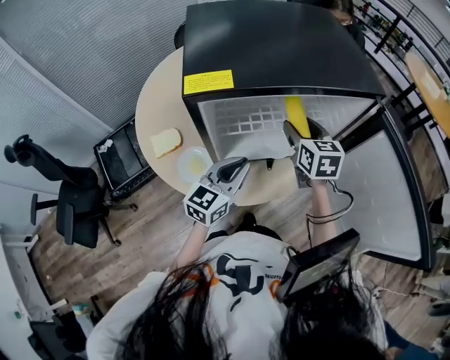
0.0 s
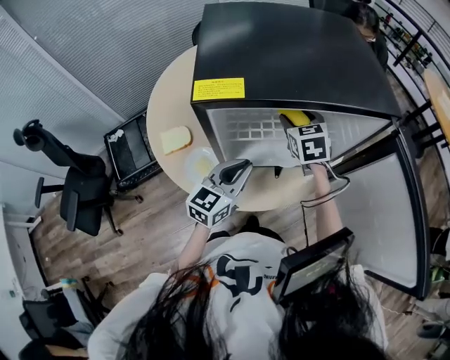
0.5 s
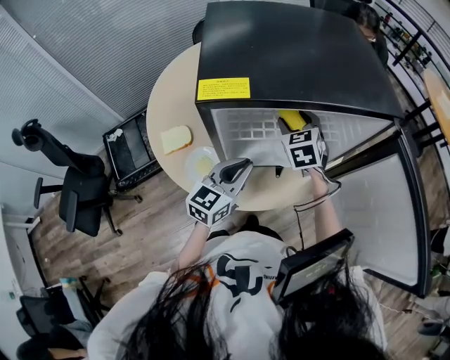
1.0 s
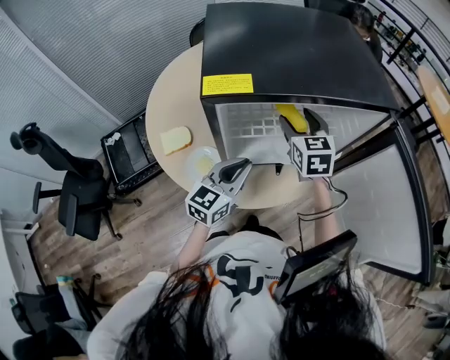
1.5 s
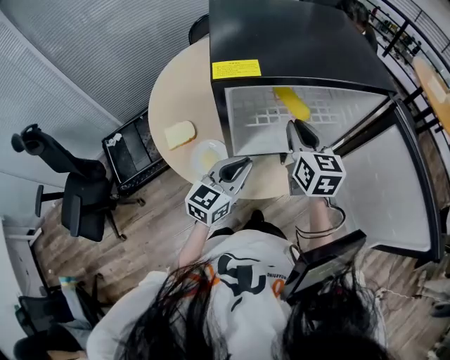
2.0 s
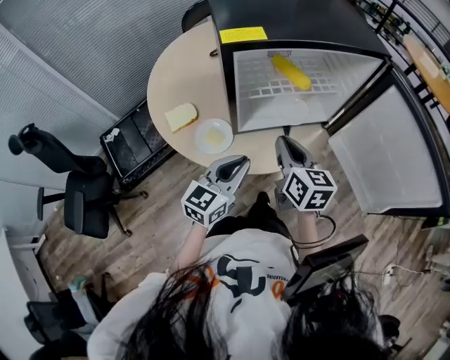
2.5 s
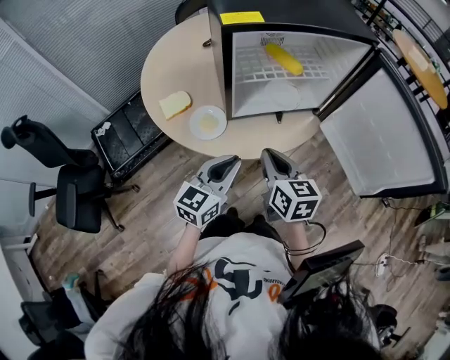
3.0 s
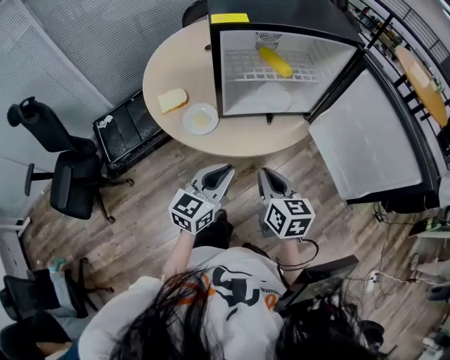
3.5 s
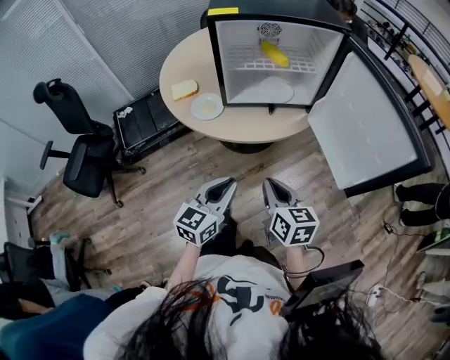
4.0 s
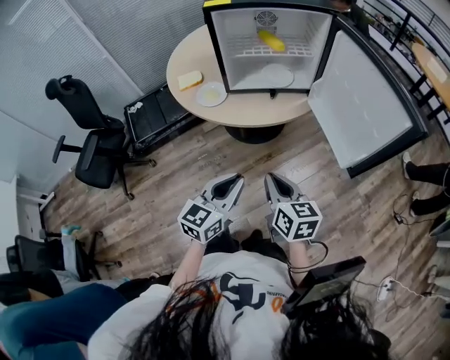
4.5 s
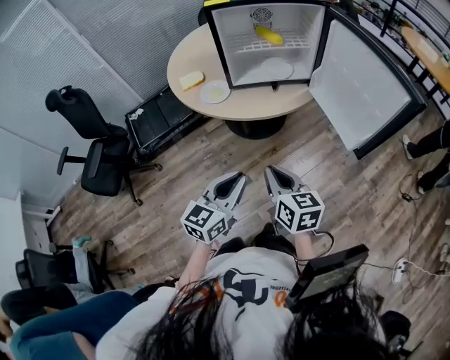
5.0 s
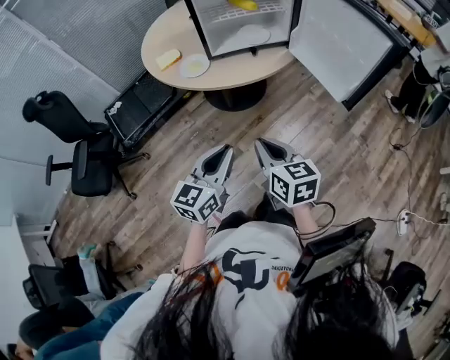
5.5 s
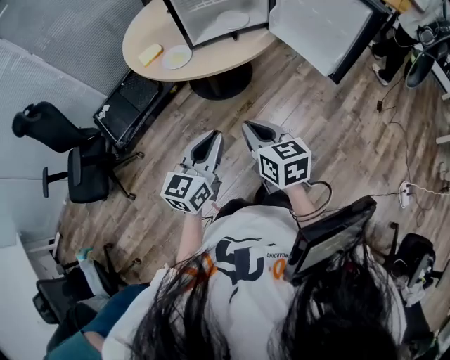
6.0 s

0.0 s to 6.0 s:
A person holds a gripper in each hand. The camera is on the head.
0.0 to 2.0 s: The left gripper changes place by approximately 5 cm. The right gripper goes about 10 cm backward and to the left, and closes its fingers.
2.0 to 4.0 s: Both grippers travel together backward, some 35 cm.
4.0 to 6.0 s: Both grippers travel together backward, about 15 cm.

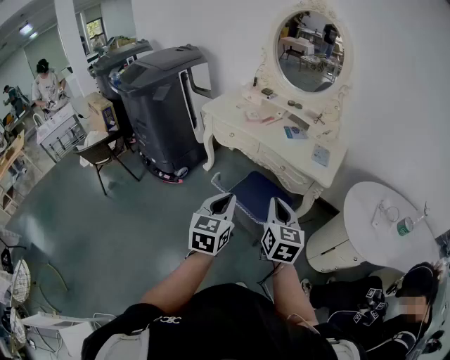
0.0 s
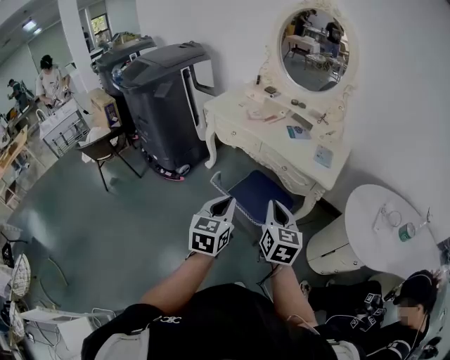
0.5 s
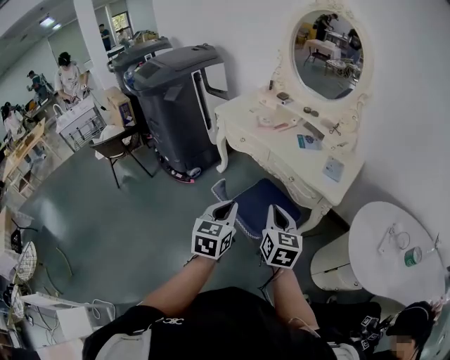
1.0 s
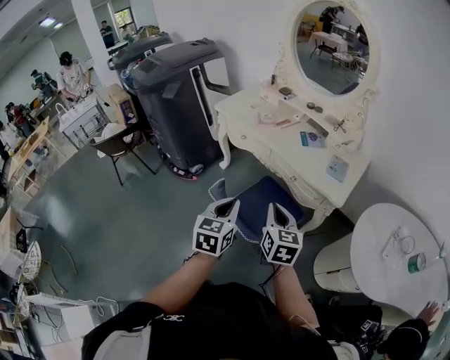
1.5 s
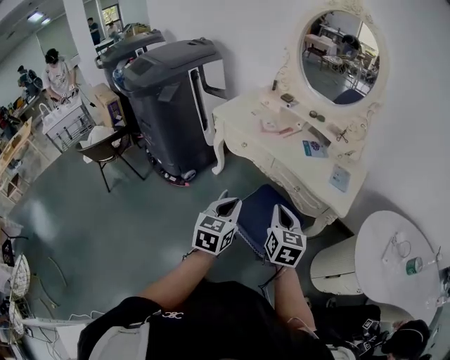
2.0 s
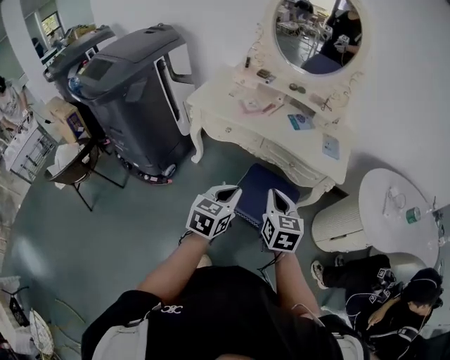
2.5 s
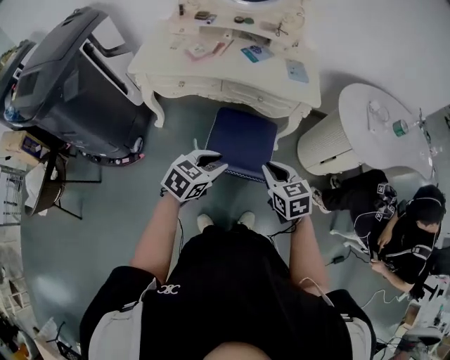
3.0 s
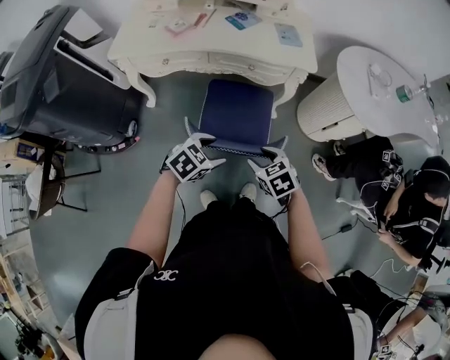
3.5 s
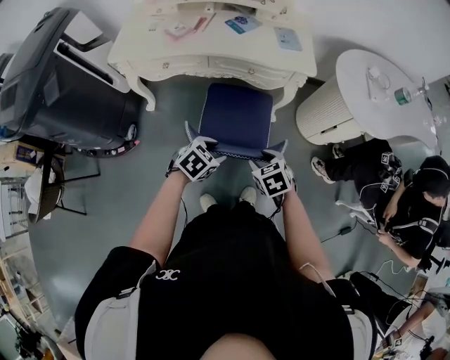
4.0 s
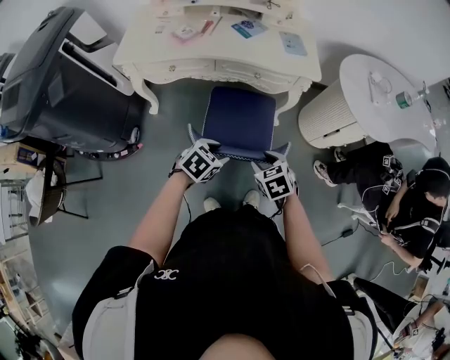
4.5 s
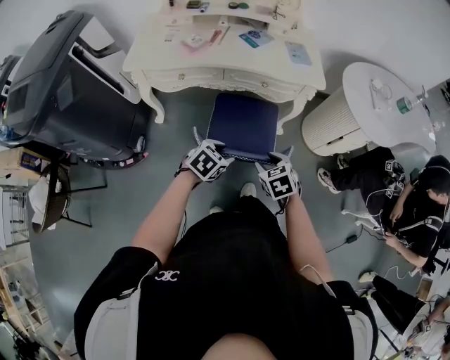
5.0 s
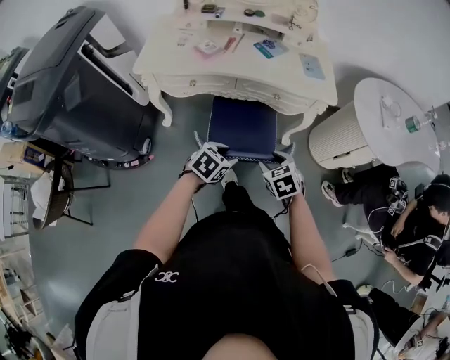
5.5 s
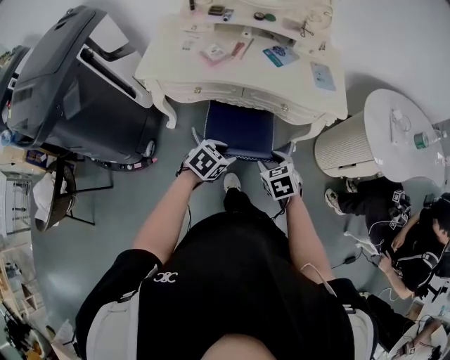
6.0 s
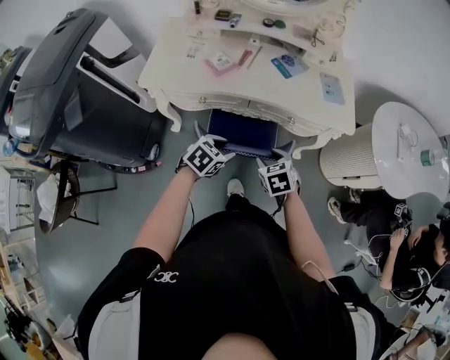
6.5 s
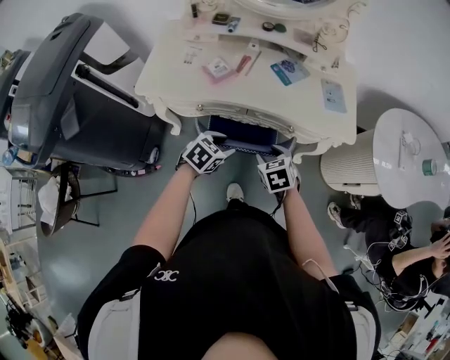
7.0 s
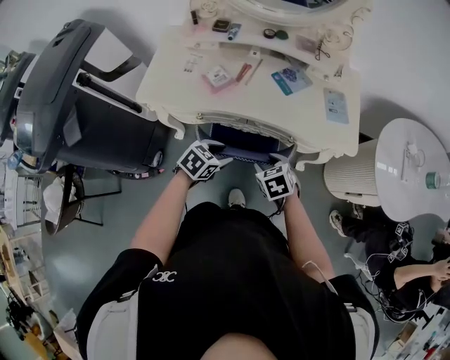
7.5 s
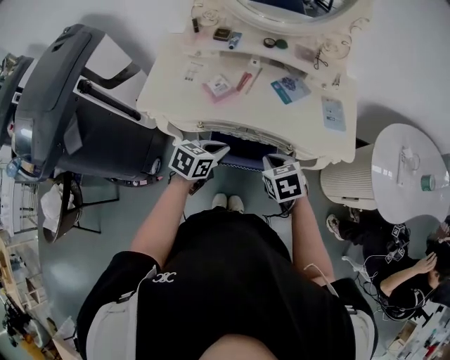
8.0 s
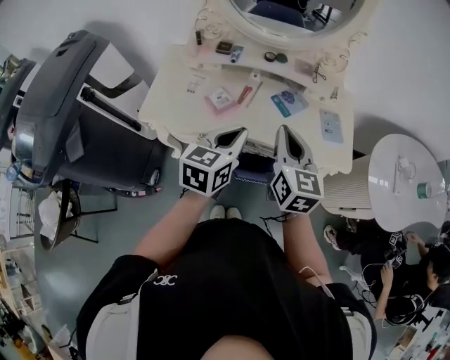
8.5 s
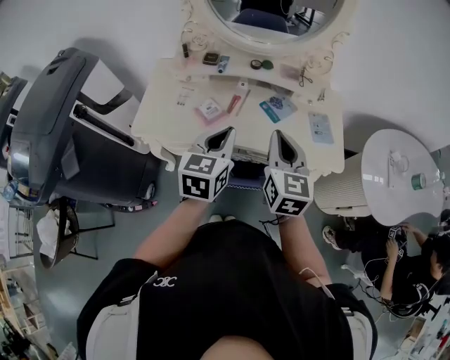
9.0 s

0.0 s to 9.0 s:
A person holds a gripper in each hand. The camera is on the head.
0.0 to 2.0 s: Both grippers move forward, approximately 15 cm.
2.0 to 4.5 s: Both grippers travel together downward, some 20 cm. The right gripper tilts its fingers approximately 40 degrees downward, and opens its fingers, while the left gripper angles its fingers downward, by approximately 30 degrees, and opens up.
4.5 to 7.0 s: Both grippers travel together forward and to the left, approximately 25 cm.
7.0 to 9.0 s: The left gripper travels upward and forward by some 25 cm, tips its fingers upward by approximately 30 degrees, and closes up, while the right gripper shifts about 25 cm upward, tilts its fingers about 40 degrees upward, and closes up.

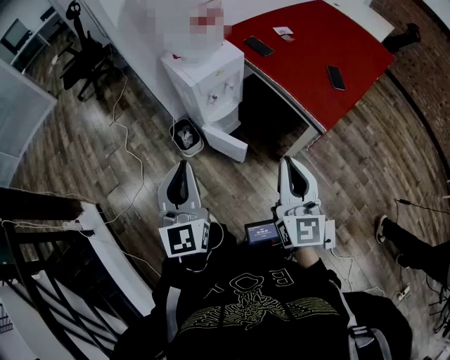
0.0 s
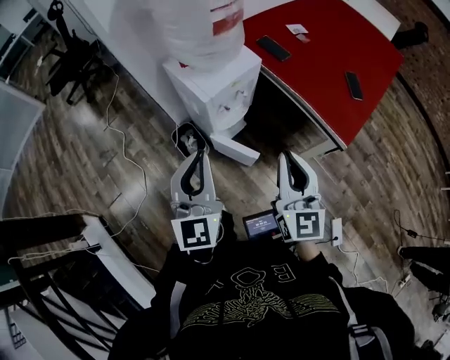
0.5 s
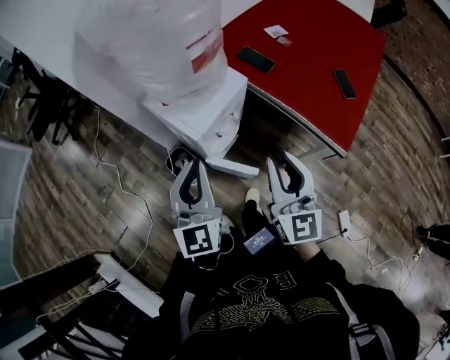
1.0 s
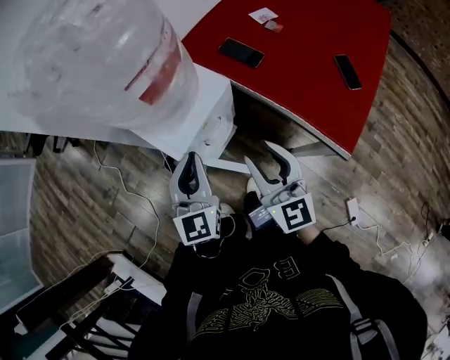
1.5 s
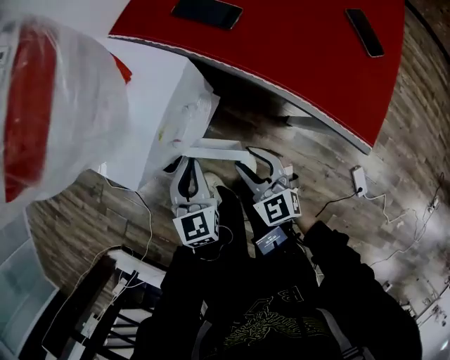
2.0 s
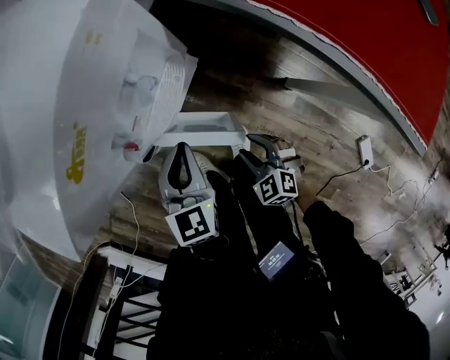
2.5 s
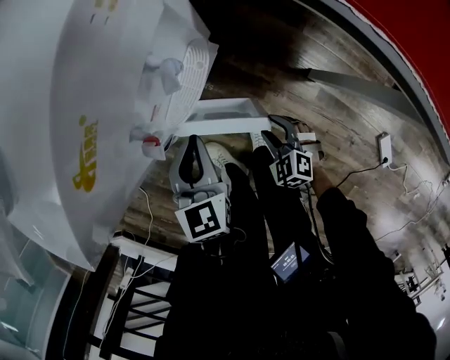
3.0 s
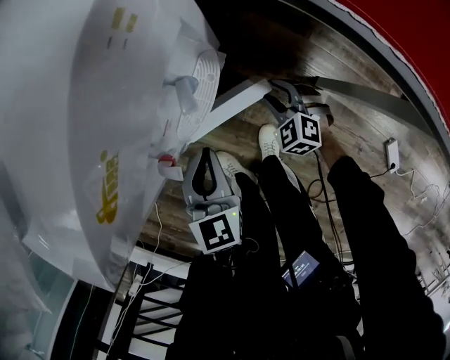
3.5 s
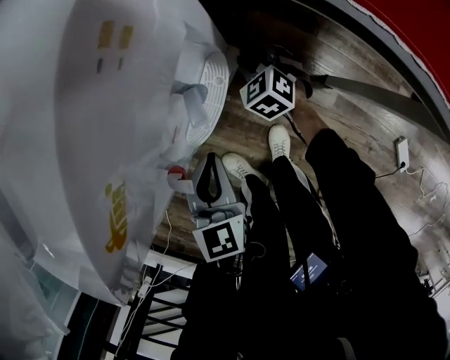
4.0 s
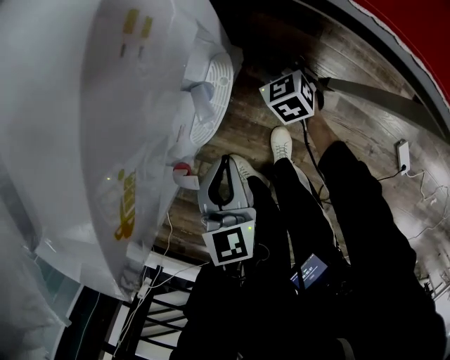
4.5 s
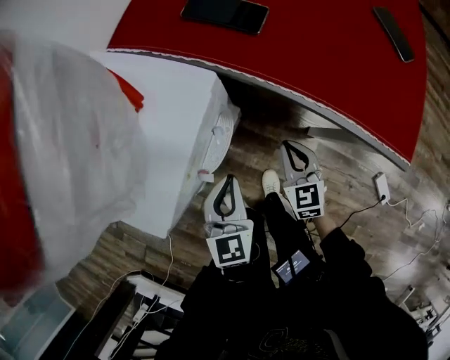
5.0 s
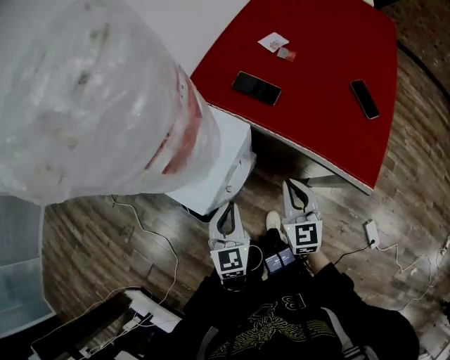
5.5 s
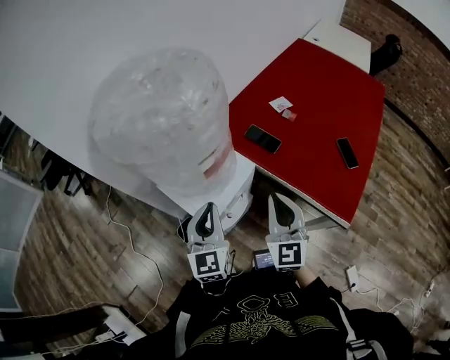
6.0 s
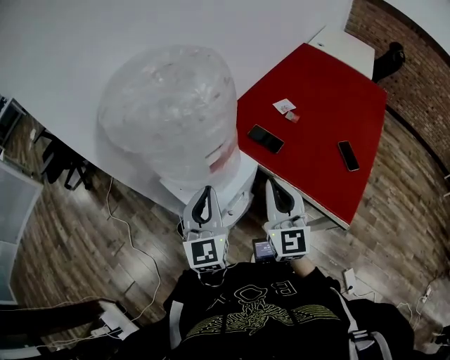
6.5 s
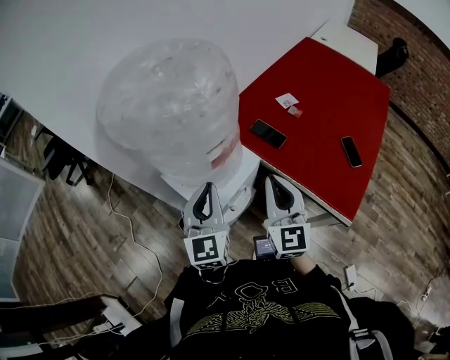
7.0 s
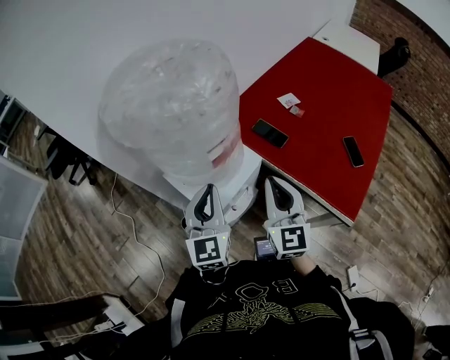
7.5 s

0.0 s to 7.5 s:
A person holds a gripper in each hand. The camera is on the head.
0.0 to 2.0 s: The right gripper heads downward and forward, covering some 50 cm, rotates approximately 30 degrees, and opens up; the left gripper is displaced forward and downward by some 50 cm, and points its fingers about 30 degrees further downward.
2.0 to 4.0 s: The right gripper travels downward and forward by roughly 35 cm, and changes its angle by roughly 30 degrees, while the left gripper shifts some 20 cm downward.
4.0 to 5.5 s: The right gripper moves upward, some 40 cm, turns by approximately 40 degrees, and closes its fingers; the left gripper shifts some 30 cm upward.
5.5 to 7.5 s: The two grippers go about 20 cm upward. The left gripper rotates about 20 degrees.

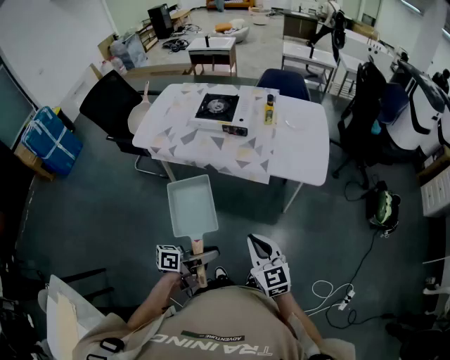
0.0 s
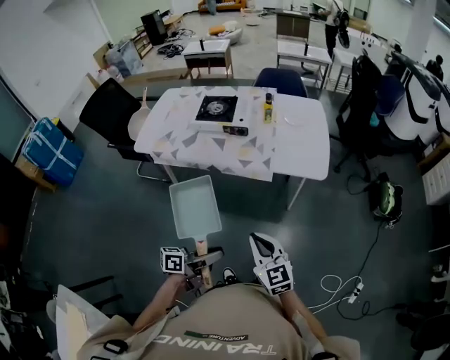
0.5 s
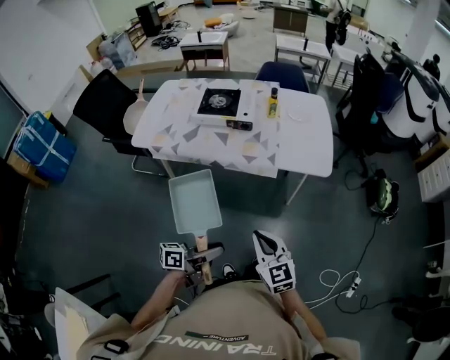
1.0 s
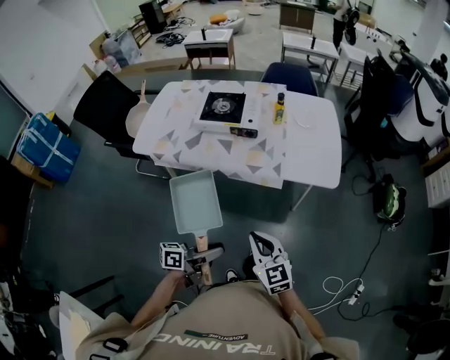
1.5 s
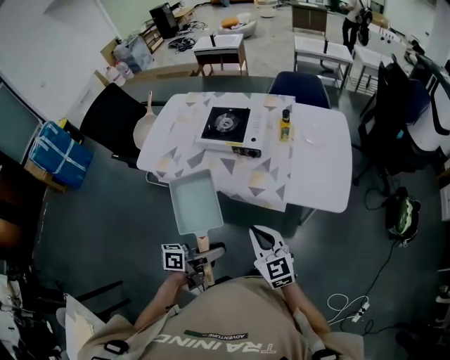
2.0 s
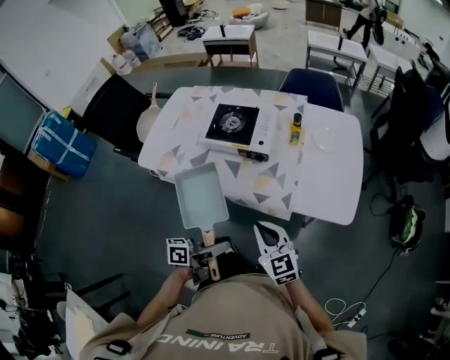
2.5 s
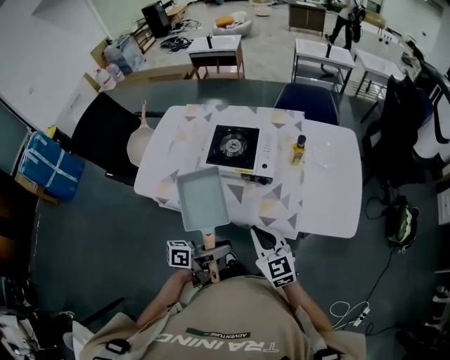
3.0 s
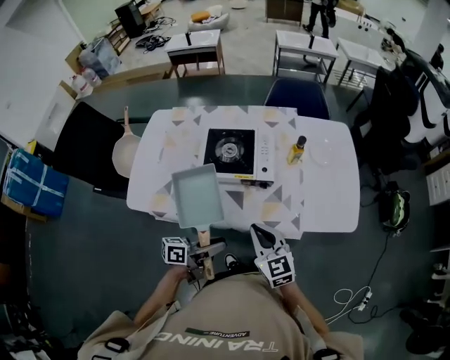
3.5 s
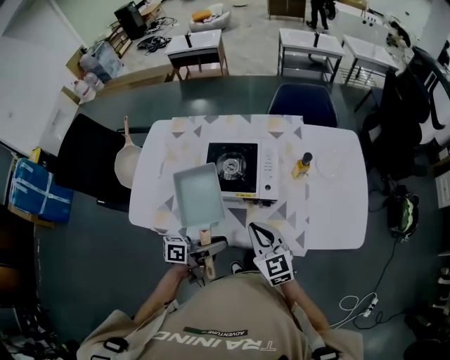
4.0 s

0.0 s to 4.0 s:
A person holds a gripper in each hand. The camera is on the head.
0.0 to 2.0 s: The grippers both shift forward and to the left by roughly 15 cm.
2.0 to 4.0 s: The two grippers go about 30 cm forward and to the left.
